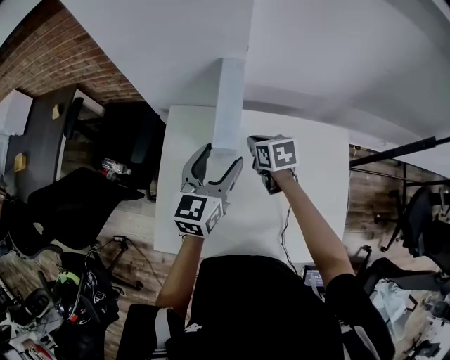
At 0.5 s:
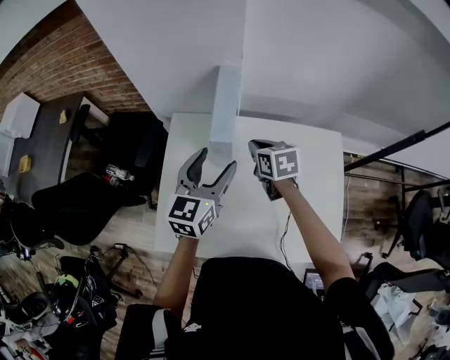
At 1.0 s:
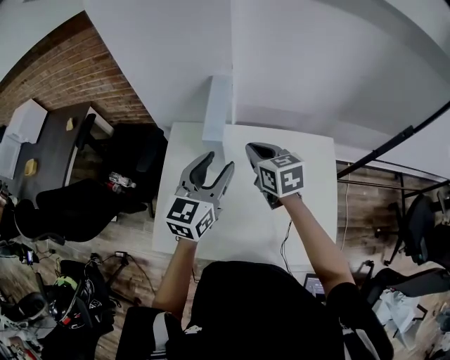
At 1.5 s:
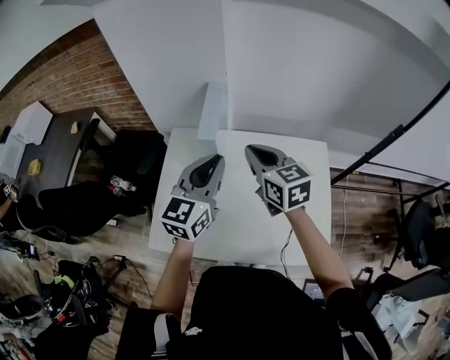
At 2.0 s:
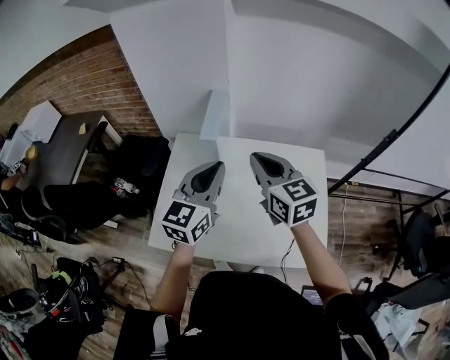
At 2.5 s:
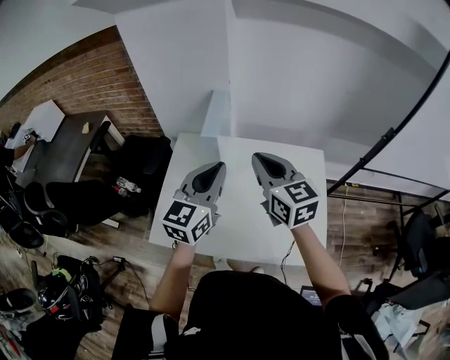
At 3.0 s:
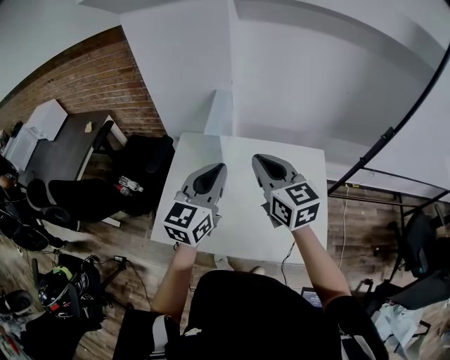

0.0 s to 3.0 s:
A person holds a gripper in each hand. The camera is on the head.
0.0 to 1.5 s: The right gripper goes roughly 25 cm upward and backward, and swivels roughly 30 degrees; the left gripper travels upward and backward by roughly 15 cm, and closes.
1.5 to 3.0 s: The left gripper is displaced backward by approximately 10 cm. The right gripper travels backward and upward by approximately 10 cm.

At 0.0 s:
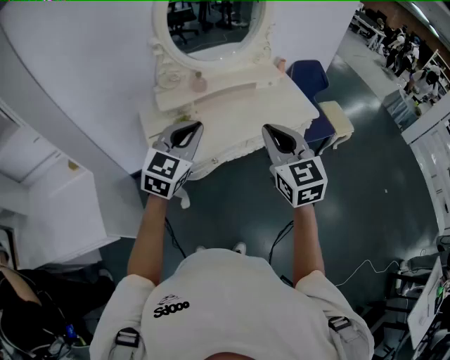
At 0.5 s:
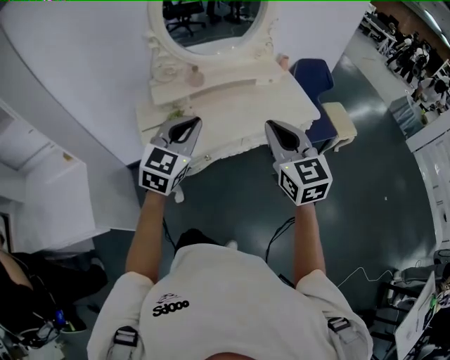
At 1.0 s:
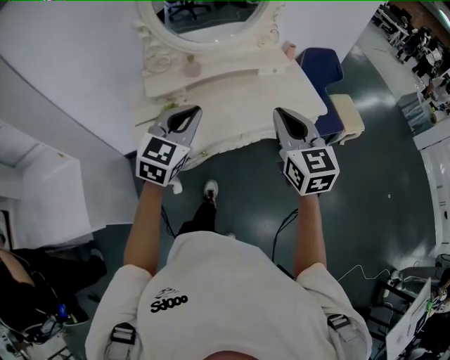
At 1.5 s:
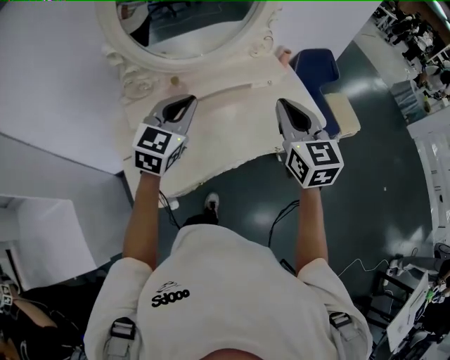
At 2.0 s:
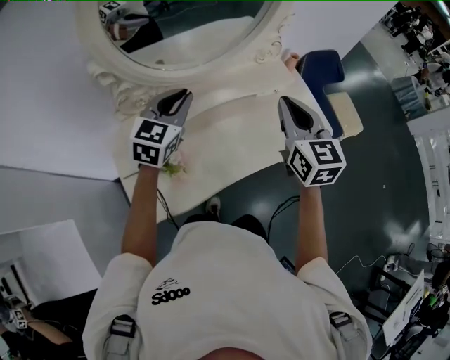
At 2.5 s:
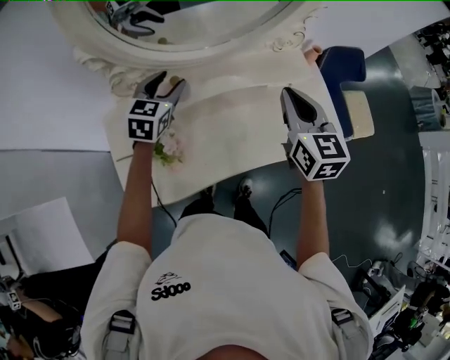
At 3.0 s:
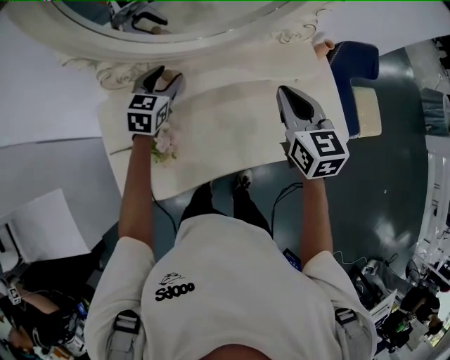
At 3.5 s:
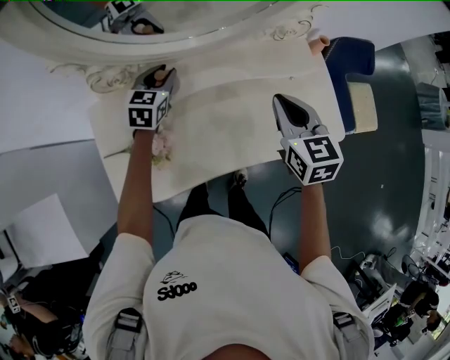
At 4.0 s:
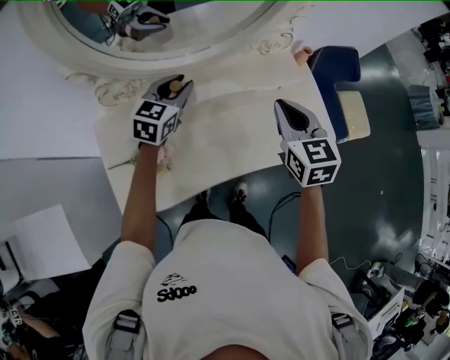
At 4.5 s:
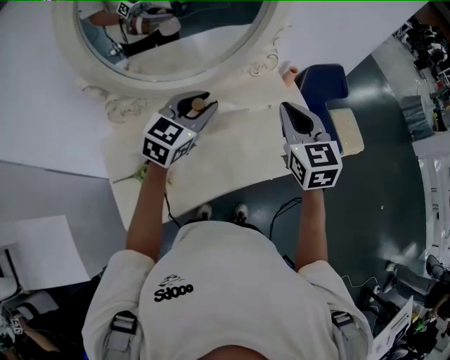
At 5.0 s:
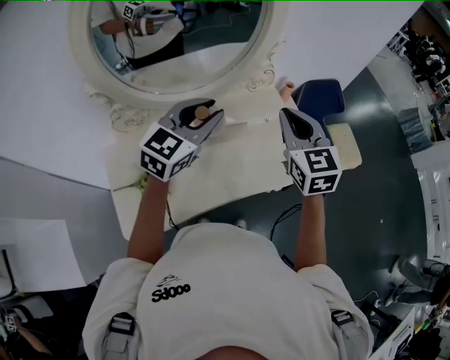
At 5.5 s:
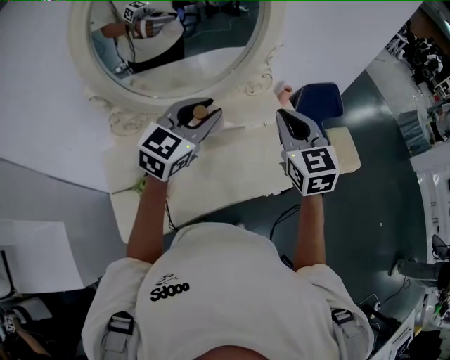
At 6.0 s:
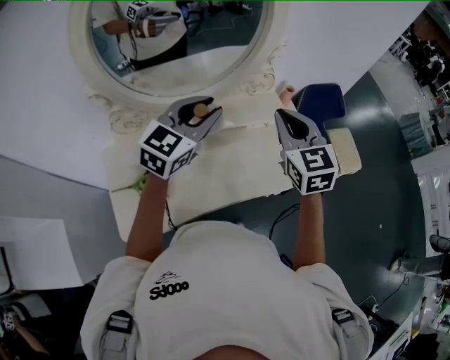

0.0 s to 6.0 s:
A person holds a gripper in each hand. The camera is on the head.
0.0 to 2.0 s: Both grippers travel together forward, about 40 cm.
2.0 to 4.0 s: The left gripper travels forward and downward by some 15 cm, and opens and closes again. The right gripper shifts some 10 cm downward and forward.
4.0 to 6.0 s: The left gripper heads upward, to the right and backward, covering about 20 cm. Meanwhile the right gripper shifts approximately 10 cm upward.

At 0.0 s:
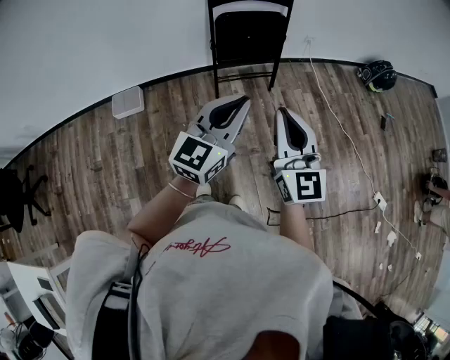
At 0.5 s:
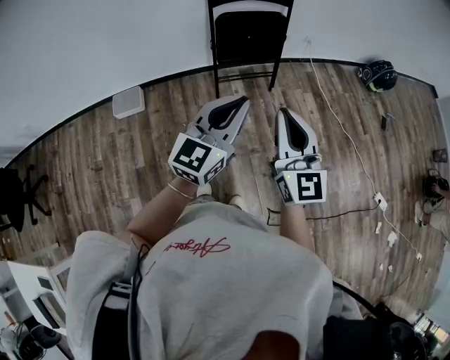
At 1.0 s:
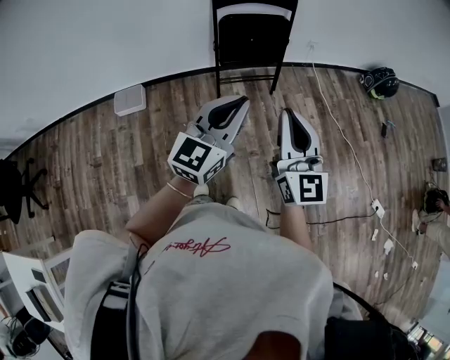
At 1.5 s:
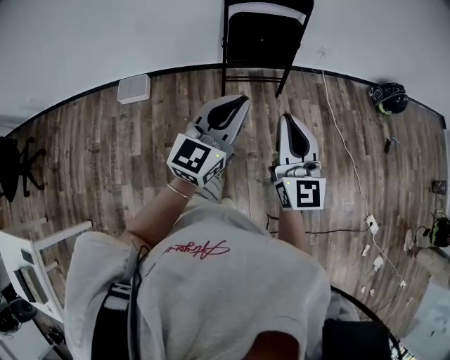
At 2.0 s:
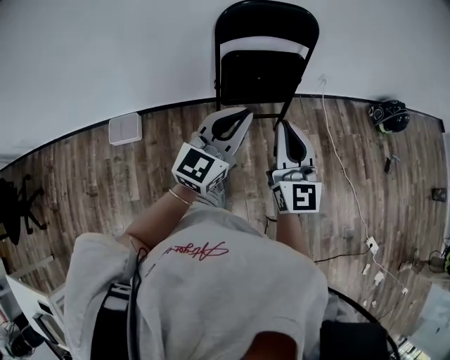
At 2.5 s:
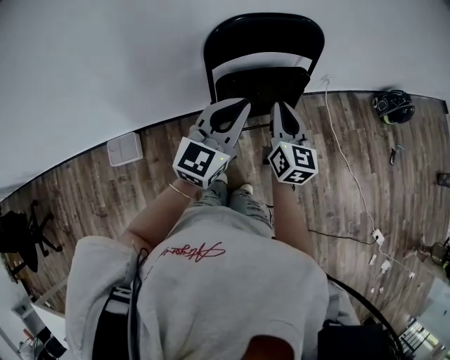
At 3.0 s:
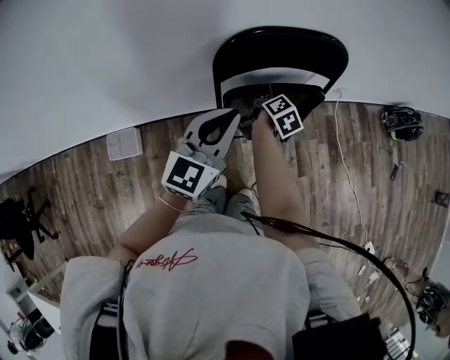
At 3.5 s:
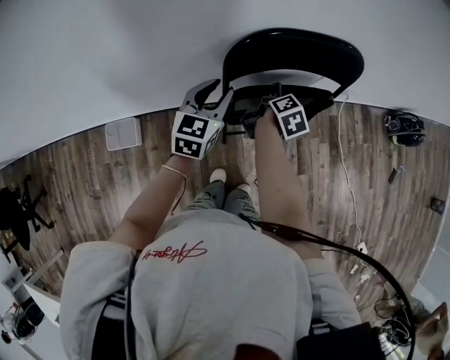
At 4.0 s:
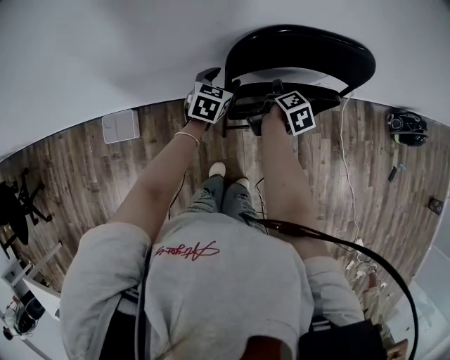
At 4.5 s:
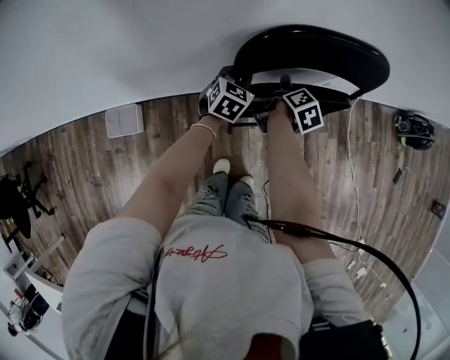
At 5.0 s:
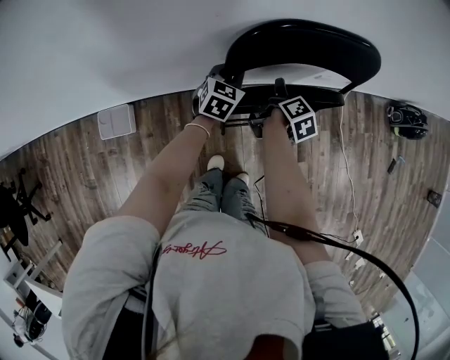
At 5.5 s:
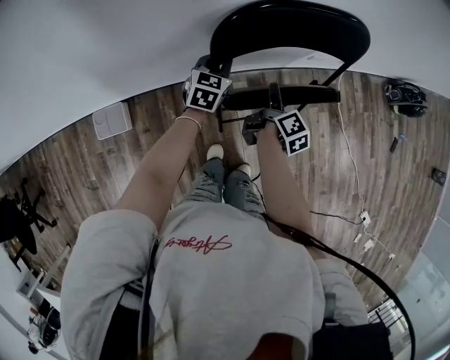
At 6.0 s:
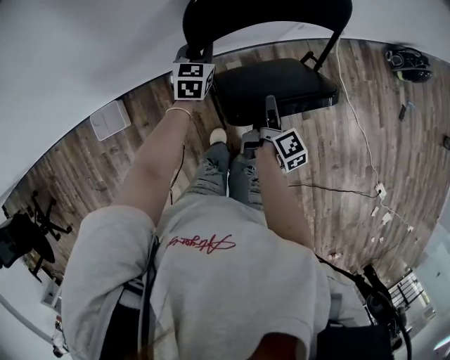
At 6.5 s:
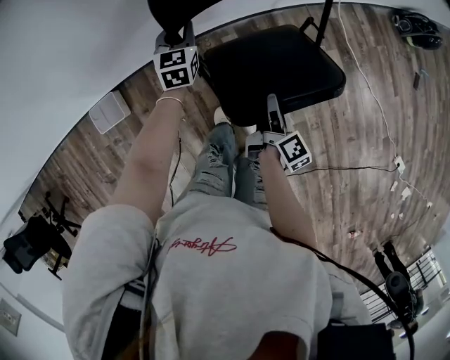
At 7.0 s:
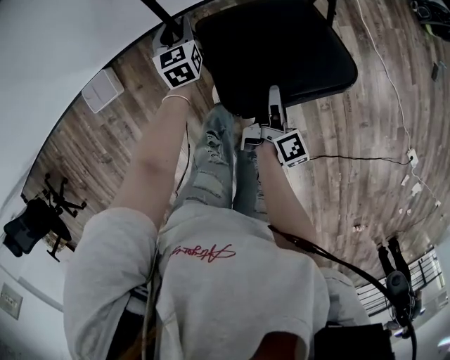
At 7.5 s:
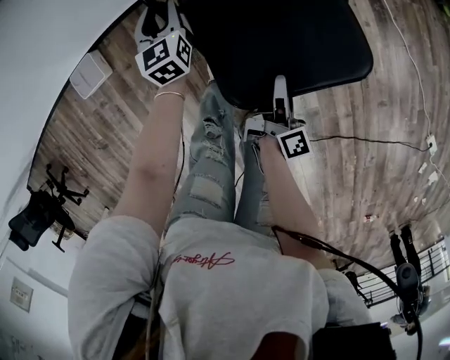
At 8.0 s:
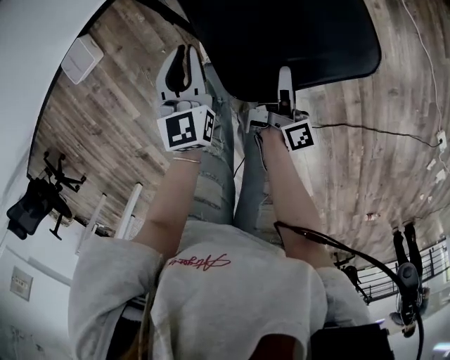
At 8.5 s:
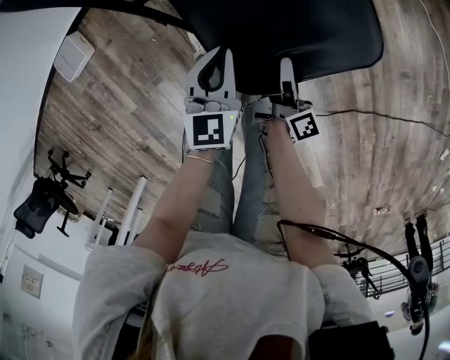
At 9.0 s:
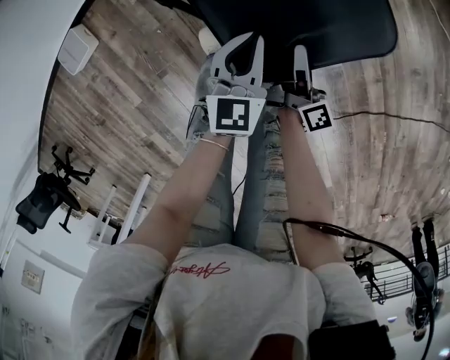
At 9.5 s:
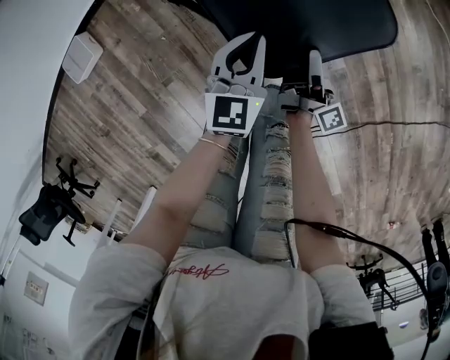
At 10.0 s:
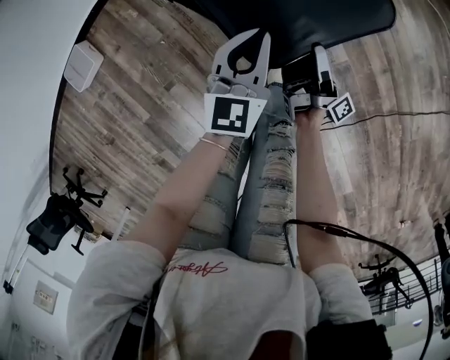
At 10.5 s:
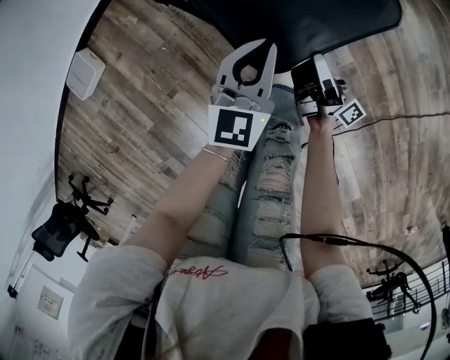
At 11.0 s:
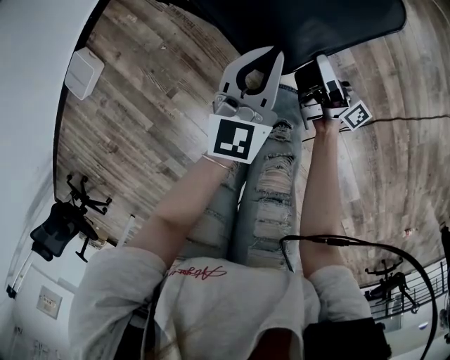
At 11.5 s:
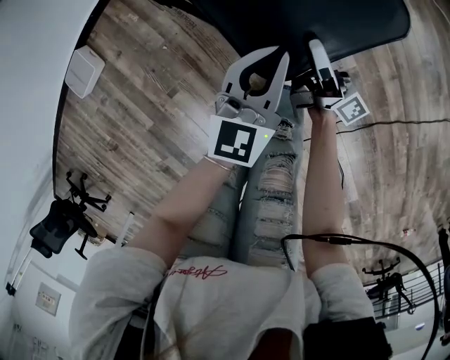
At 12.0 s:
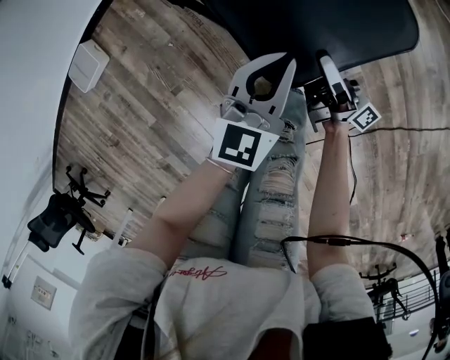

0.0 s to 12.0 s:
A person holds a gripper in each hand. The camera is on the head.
0.0 to 2.0 s: Both grippers move forward, about 25 cm.
2.0 to 4.0 s: The right gripper is displaced forward and downward by some 50 cm, tilts its fingers approximately 50 degrees downward, and opens. The left gripper moves forward, downward and to the left, some 50 cm, tips its fingers downward by some 40 degrees, and opens.
4.0 to 6.0 s: The right gripper moves backward and to the right, about 20 cm, and turns by about 20 degrees. Meanwhile the left gripper closes up.
6.0 to 8.0 s: The left gripper travels backward by some 35 cm, while the right gripper goes some 35 cm backward, downward and to the right.
8.0 to 10.0 s: The left gripper shifts roughly 15 cm to the right and backward, and rotates some 30 degrees. Meanwhile the right gripper moves backward and downward, roughly 10 cm, and swivels roughly 30 degrees.
10.0 to 12.0 s: The right gripper rotates some 30 degrees, and closes up.

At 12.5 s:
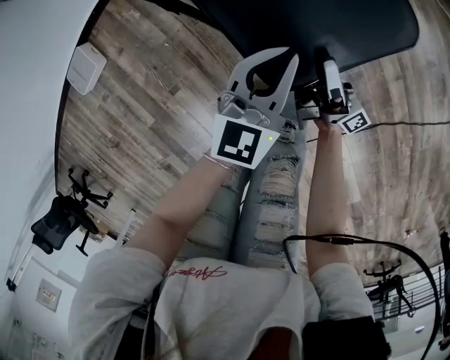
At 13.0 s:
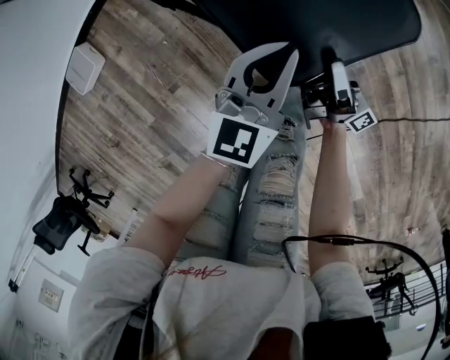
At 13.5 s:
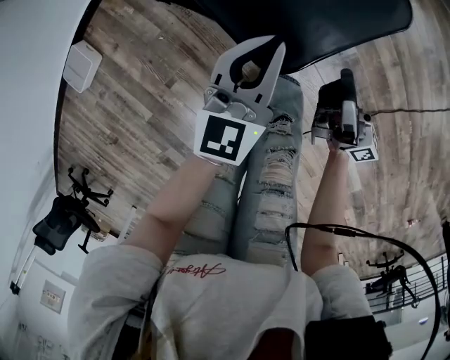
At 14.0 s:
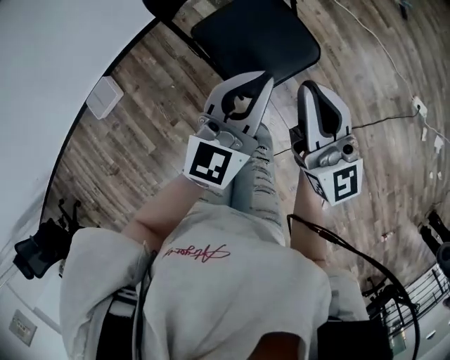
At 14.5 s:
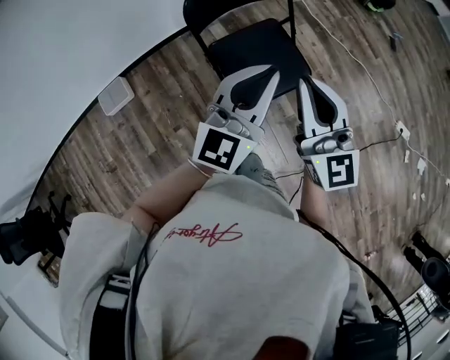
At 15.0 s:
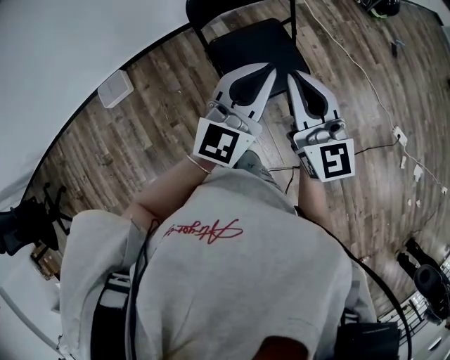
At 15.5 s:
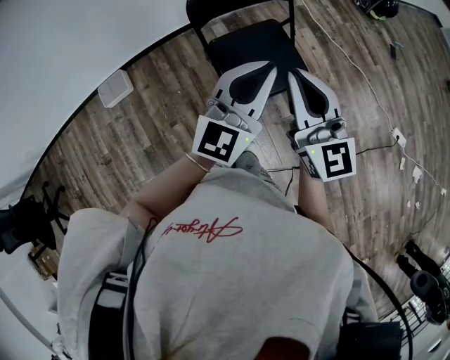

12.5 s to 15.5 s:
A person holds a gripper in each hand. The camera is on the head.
12.5 to 14.0 s: Both grippers travel together upward, some 40 cm. The right gripper rolls counterclockwise, seen from behind, by some 70 degrees, and closes up.
14.0 to 15.5 s: Both grippers move upward, roughly 10 cm.

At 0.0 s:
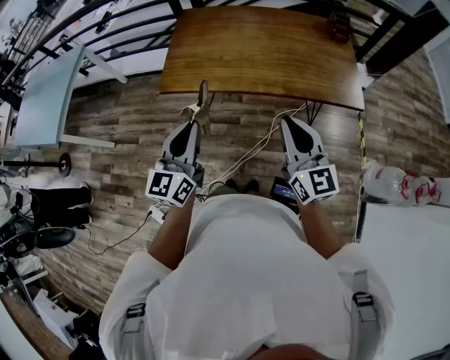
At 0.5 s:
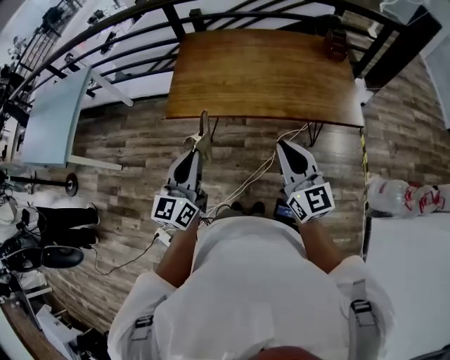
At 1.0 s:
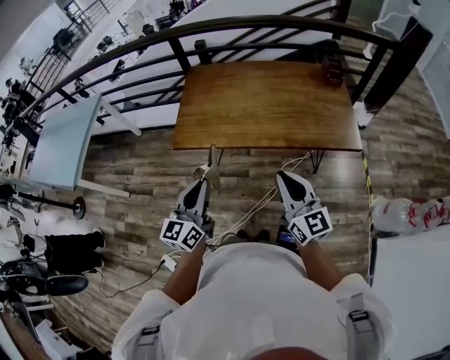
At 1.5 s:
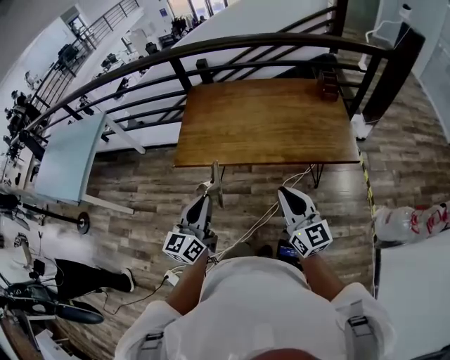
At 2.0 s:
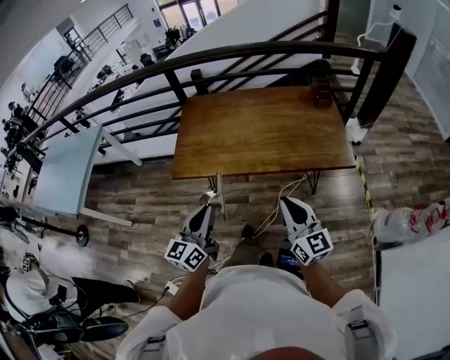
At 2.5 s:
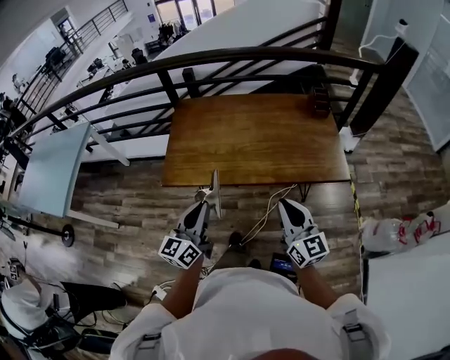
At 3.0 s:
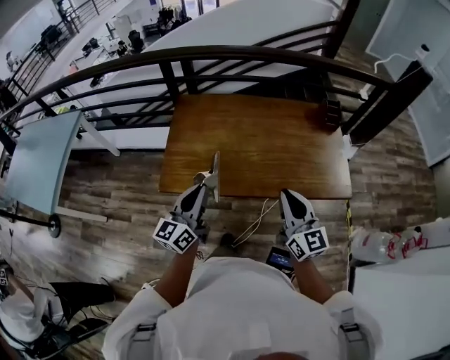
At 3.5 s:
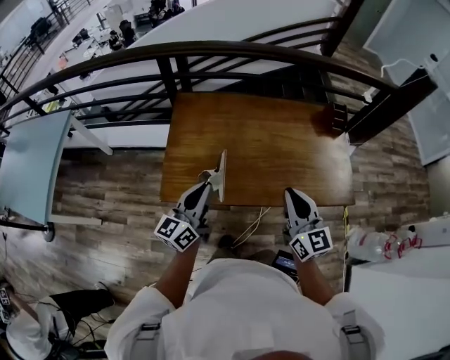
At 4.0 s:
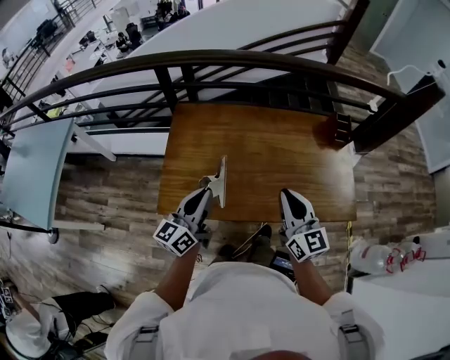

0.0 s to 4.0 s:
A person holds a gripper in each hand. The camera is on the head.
0.0 to 2.0 s: The grippers stay close to where they were, moving slightly.
2.0 to 4.0 s: Both grippers move forward, about 35 cm.
